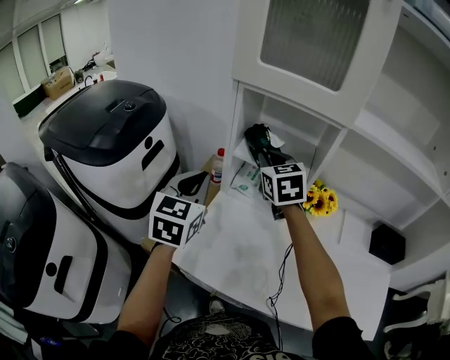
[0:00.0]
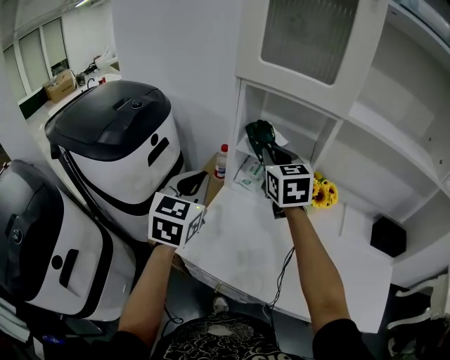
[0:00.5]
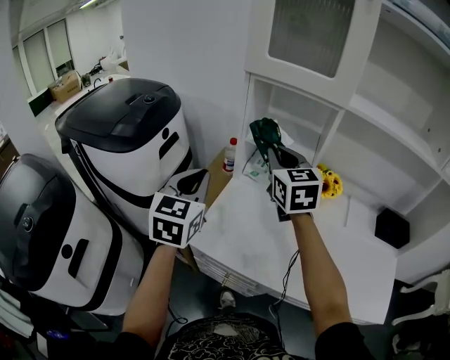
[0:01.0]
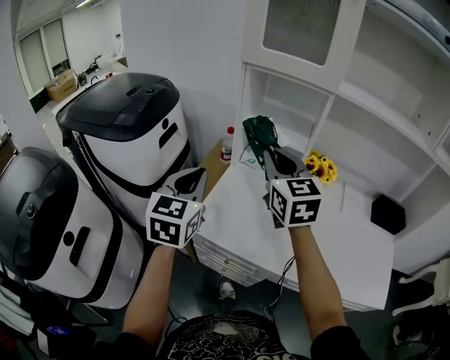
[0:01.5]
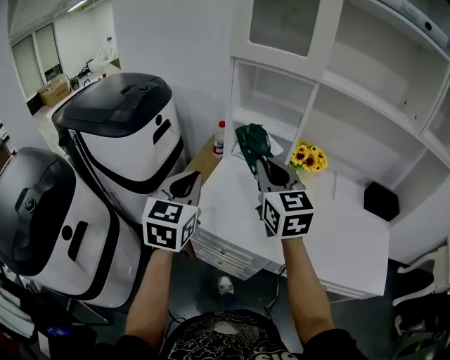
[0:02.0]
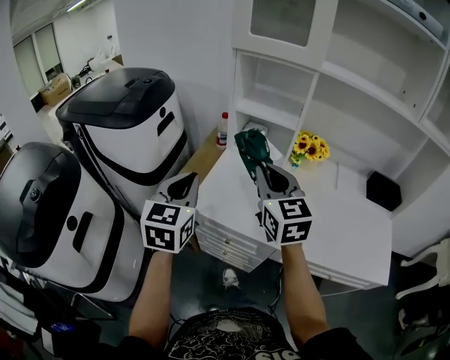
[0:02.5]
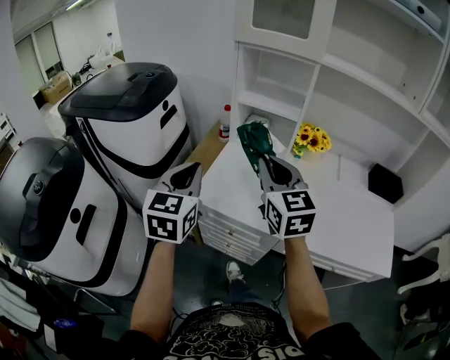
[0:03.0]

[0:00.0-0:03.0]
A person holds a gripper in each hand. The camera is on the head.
0.0 to 1.5 s: Both grippers travel together backward, approximately 15 cm.
1.5 to 3.0 s: Both grippers move backward, about 10 cm.

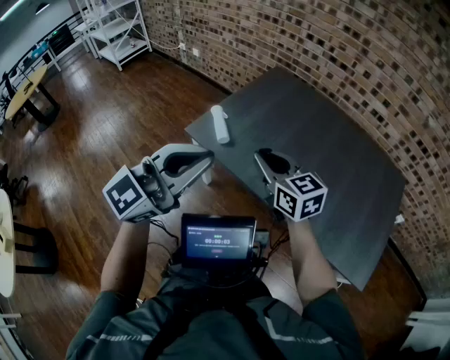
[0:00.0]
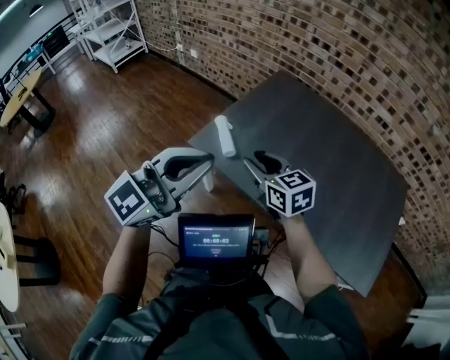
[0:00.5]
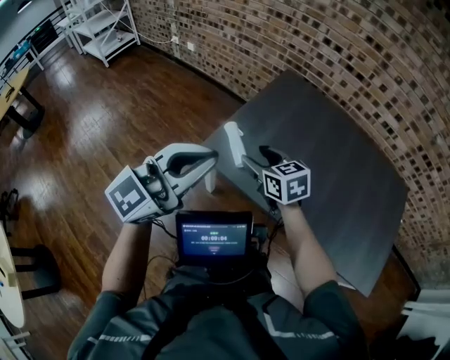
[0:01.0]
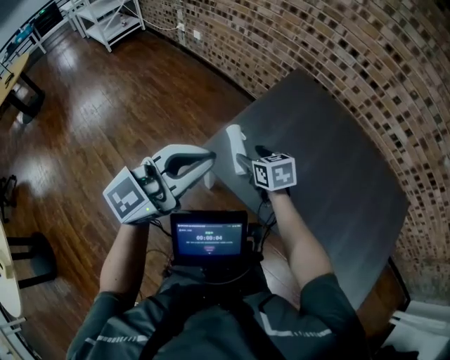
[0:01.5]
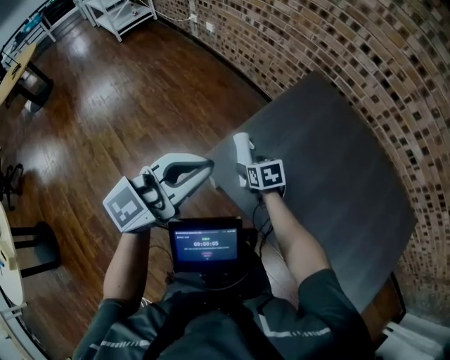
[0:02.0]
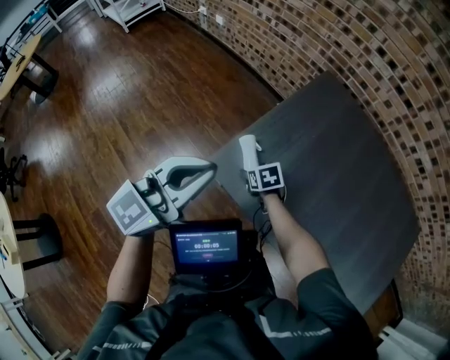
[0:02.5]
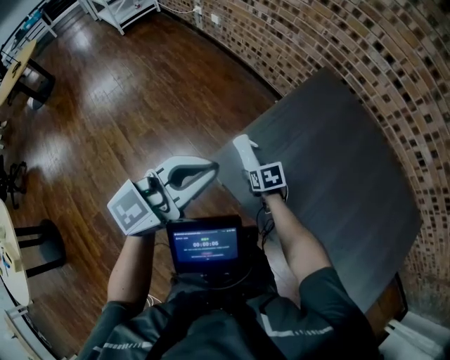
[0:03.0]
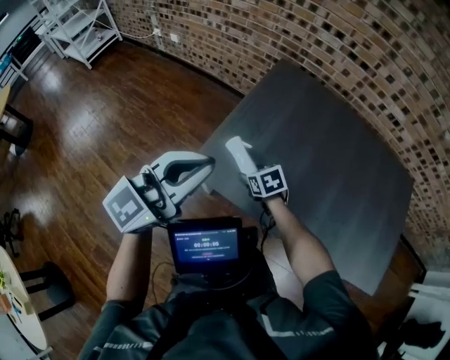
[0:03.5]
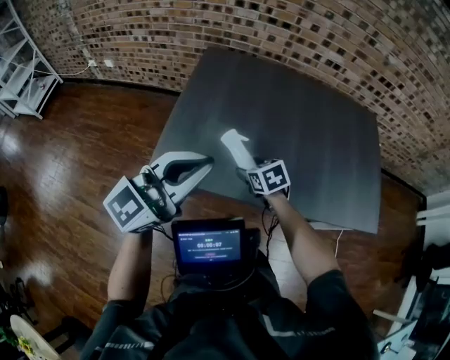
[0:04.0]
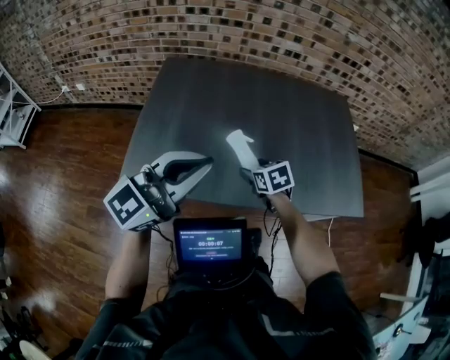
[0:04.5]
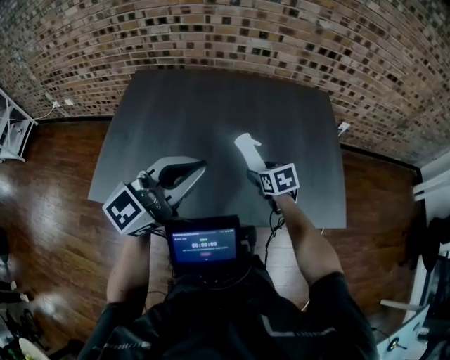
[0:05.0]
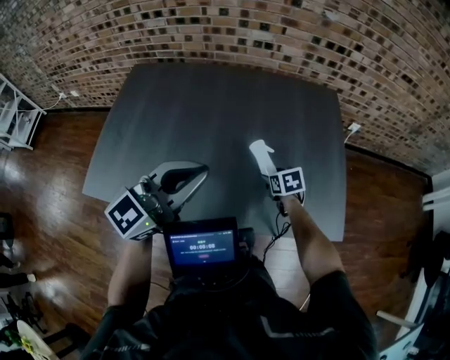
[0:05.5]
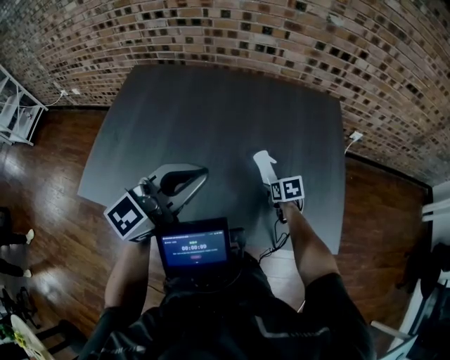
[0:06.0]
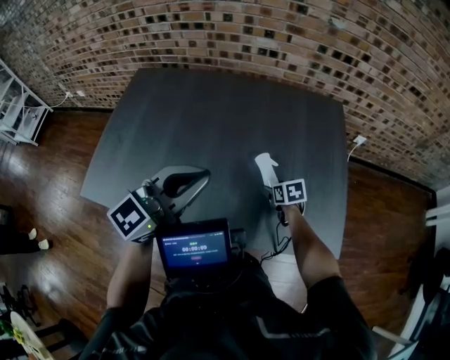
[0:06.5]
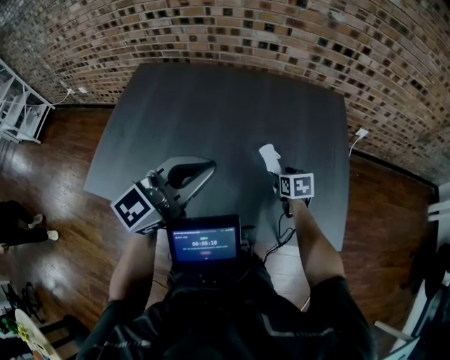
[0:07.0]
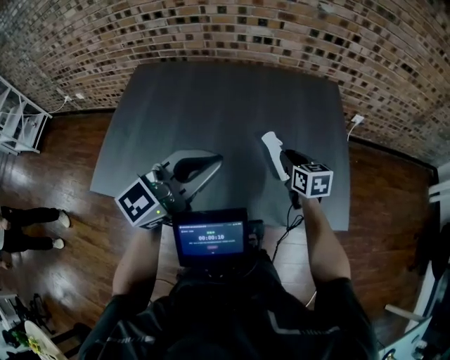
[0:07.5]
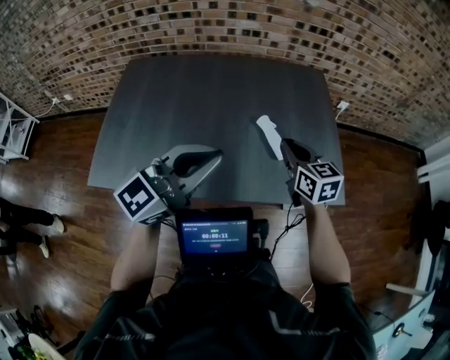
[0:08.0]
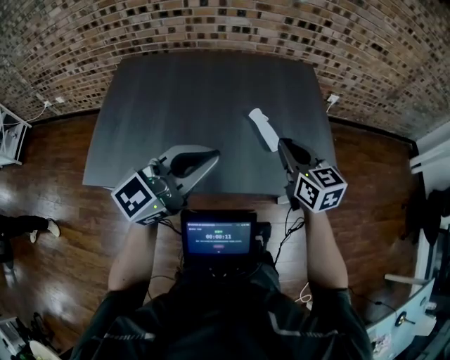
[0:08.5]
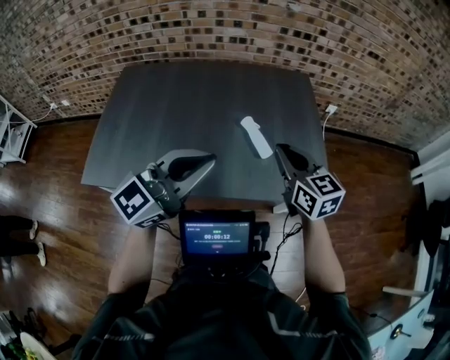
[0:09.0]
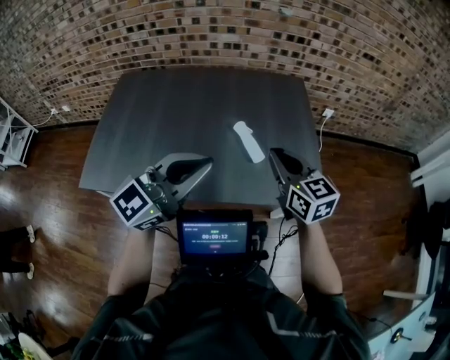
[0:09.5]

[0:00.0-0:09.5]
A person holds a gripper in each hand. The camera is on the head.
0.0 to 2.0 s: The left gripper heads forward and to the left, covering about 30 cm, while the right gripper travels downward, forward and to the left by approximately 40 cm, tips its fingers downward by some 40 degrees, and opens its fingers.
2.0 to 4.0 s: The left gripper ends up some 15 cm from where it was, and changes its angle by roughly 30 degrees. The right gripper moves some 25 cm, and swivels roughly 20 degrees.
4.0 to 5.5 s: Both grippers move to the right, some 40 cm.
5.5 to 7.5 s: The right gripper shifts some 10 cm upward, rotates roughly 30 degrees, and closes.
7.5 to 9.5 s: The right gripper travels upward and backward by roughly 25 cm, and swivels some 20 degrees. Meanwhile the left gripper is displaced backward and to the right by roughly 10 cm.

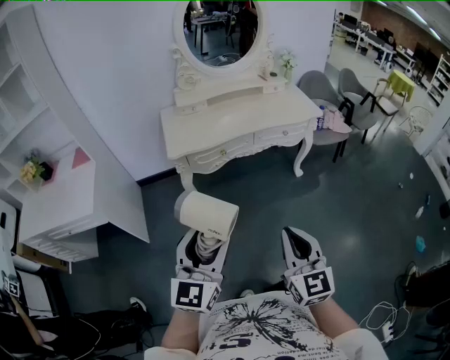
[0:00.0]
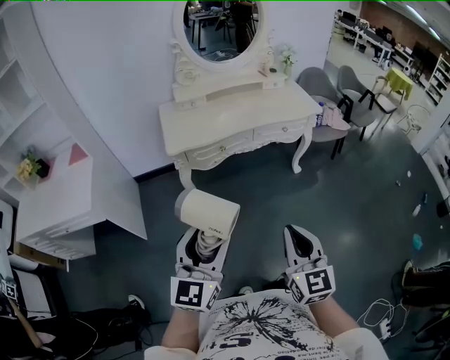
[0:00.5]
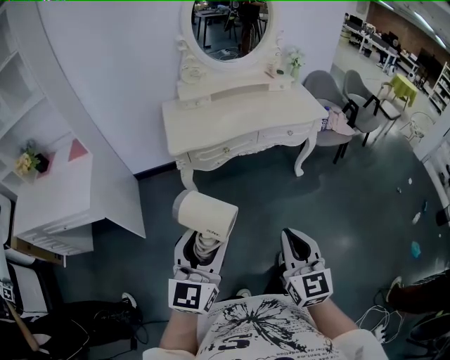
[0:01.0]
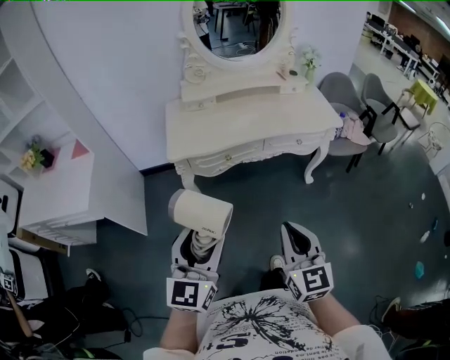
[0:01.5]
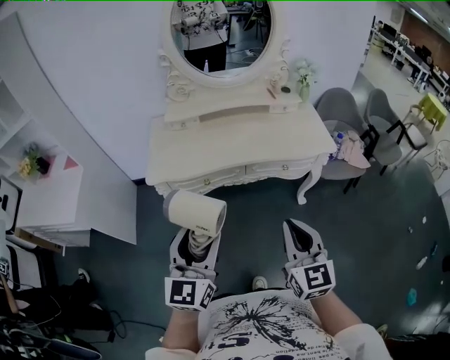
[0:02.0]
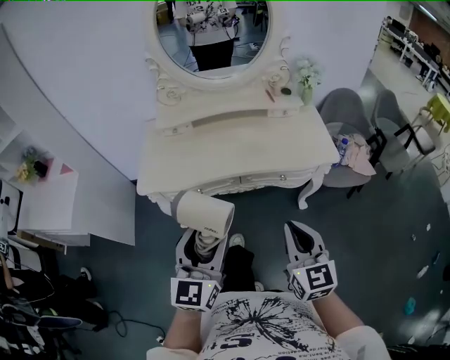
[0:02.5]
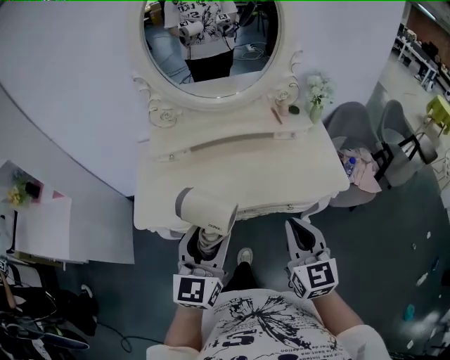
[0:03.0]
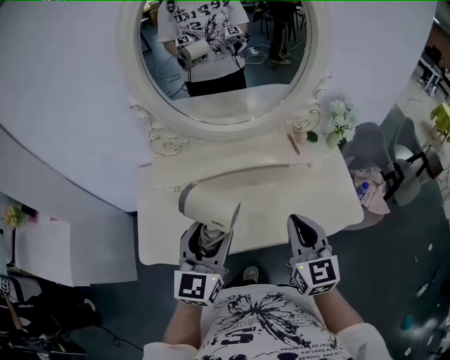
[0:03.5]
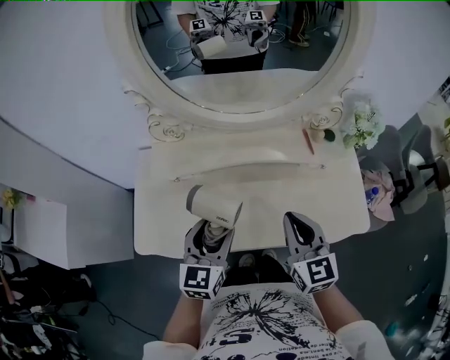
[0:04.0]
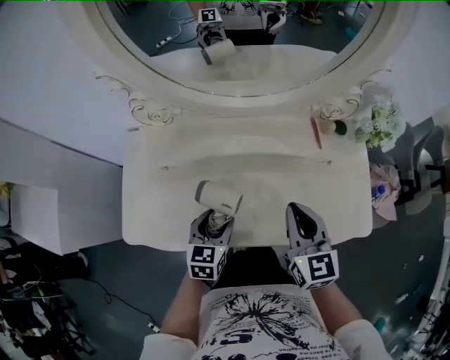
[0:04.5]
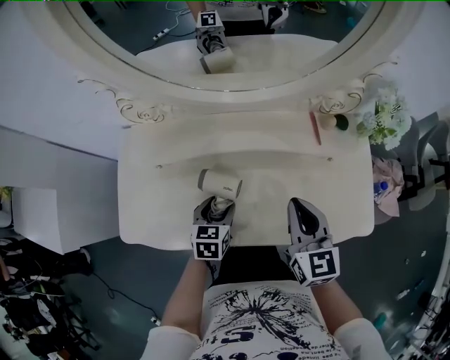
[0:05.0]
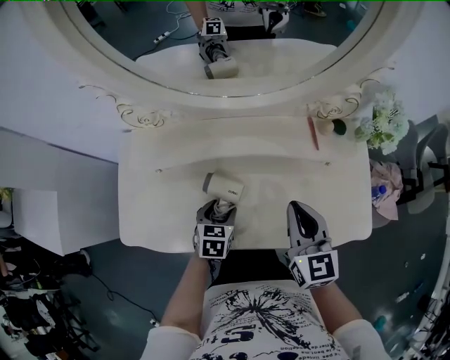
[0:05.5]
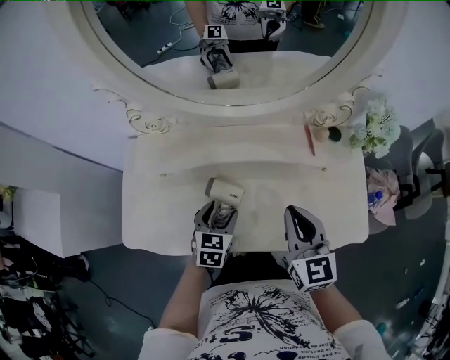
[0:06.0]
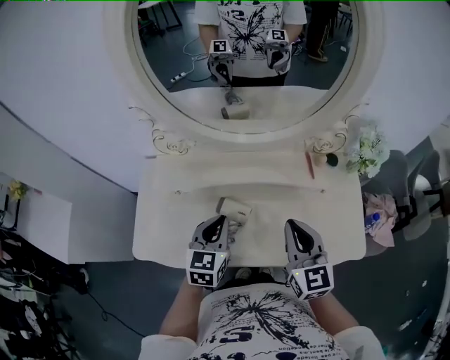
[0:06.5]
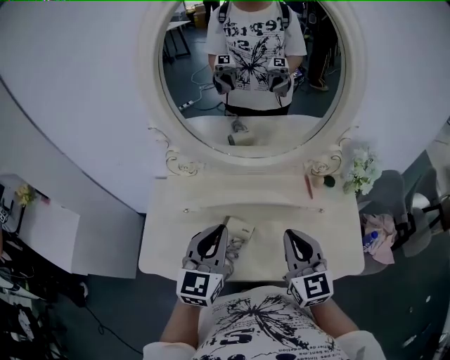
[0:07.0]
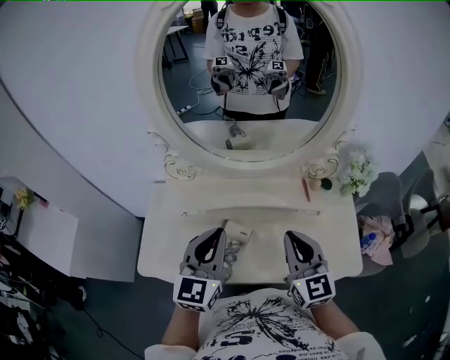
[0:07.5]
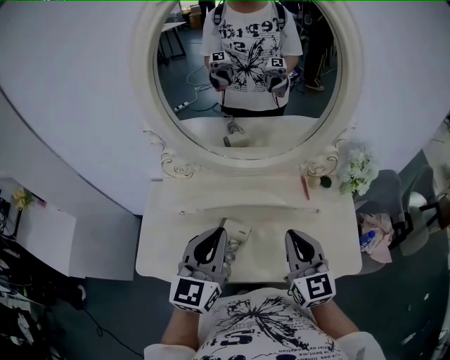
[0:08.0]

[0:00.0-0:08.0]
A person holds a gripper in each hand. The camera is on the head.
0.0 to 2.0 s: The two grippers go approximately 30 cm forward and to the right.
2.0 to 4.0 s: The pair of grippers is taken forward, about 50 cm.
4.0 to 6.0 s: The right gripper goes some 5 cm forward; the left gripper is displaced downward and forward by approximately 15 cm, and rotates approximately 20 degrees.
6.0 to 8.0 s: The right gripper is displaced upward by approximately 10 cm, while the left gripper shifts approximately 30 cm upward, points its fingers approximately 40 degrees further upward, and closes up.

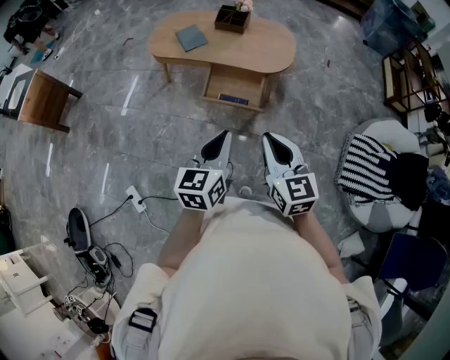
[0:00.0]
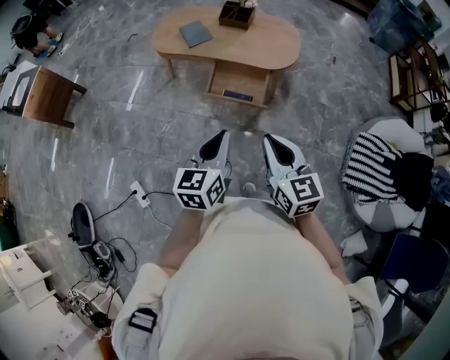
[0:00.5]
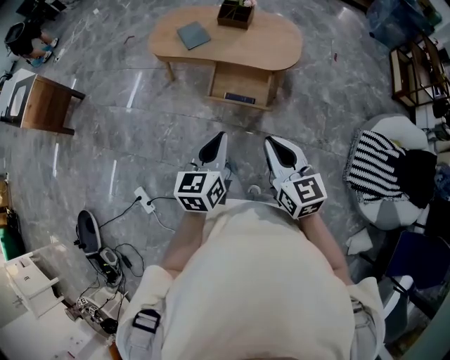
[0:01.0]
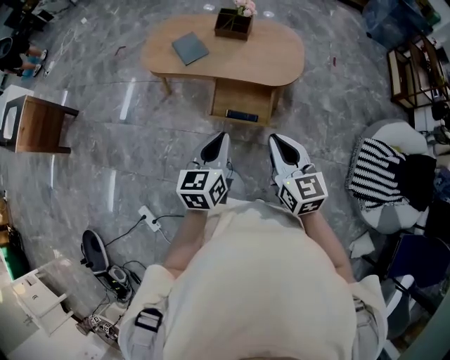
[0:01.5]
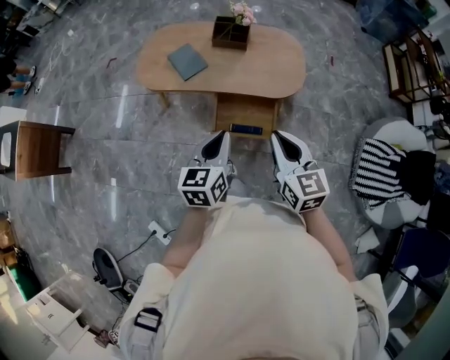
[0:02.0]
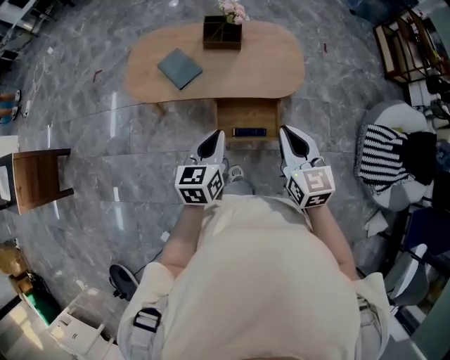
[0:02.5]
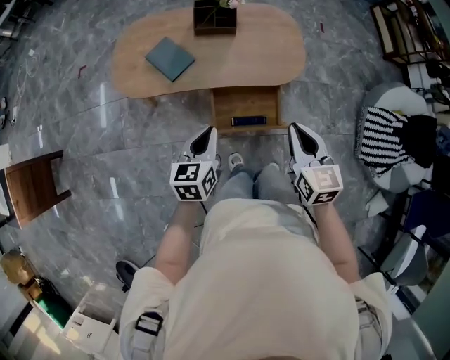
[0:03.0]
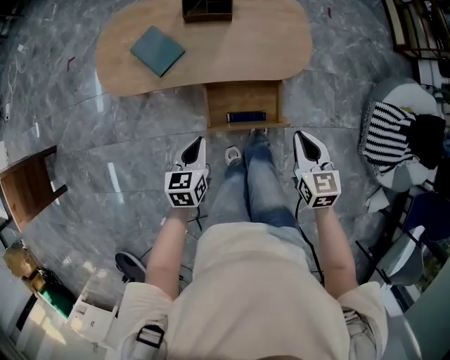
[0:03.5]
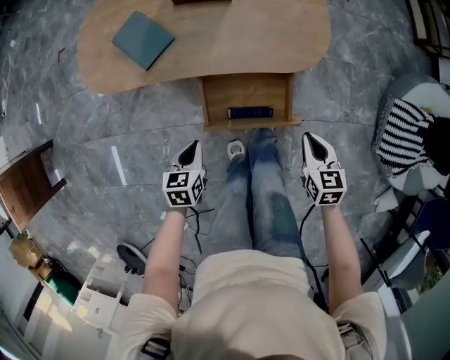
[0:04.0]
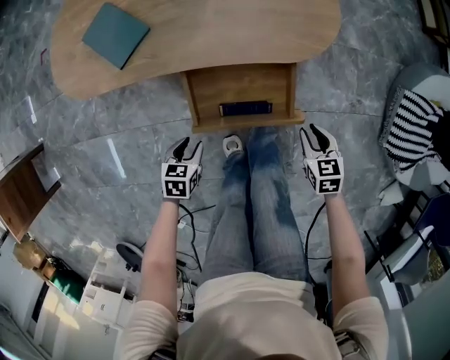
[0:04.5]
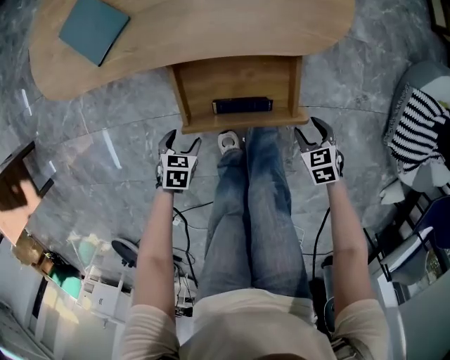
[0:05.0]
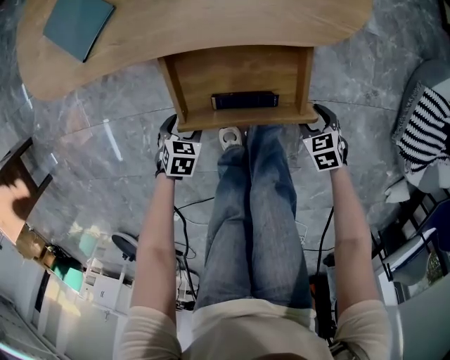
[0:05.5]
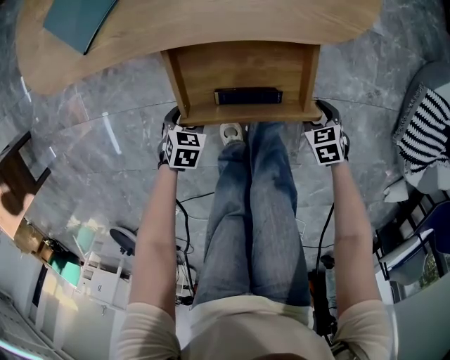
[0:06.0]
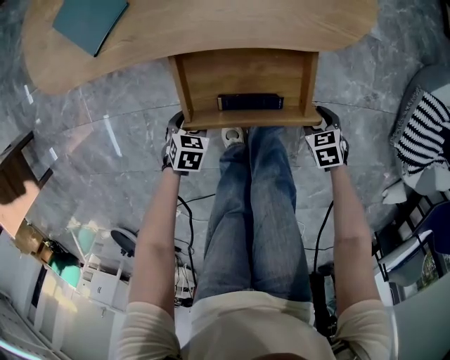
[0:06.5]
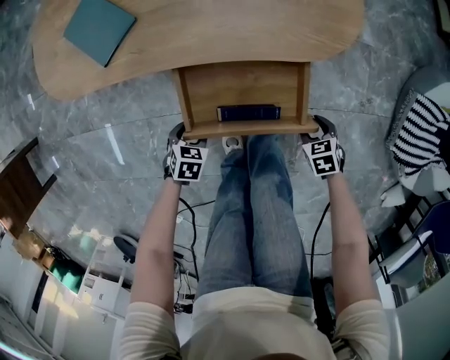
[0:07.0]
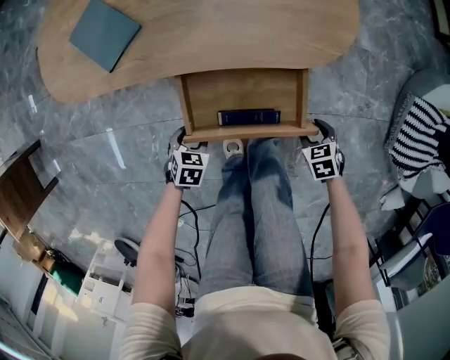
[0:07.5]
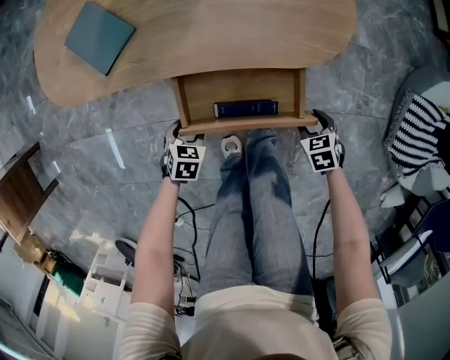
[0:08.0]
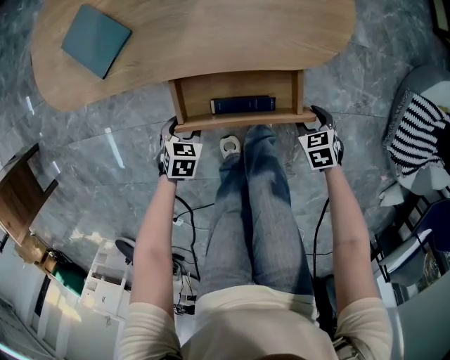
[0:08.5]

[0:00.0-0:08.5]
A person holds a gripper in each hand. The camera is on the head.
0.0 to 2.0 s: Both grippers travel together forward, some 25 cm.
2.0 to 4.0 s: Both grippers travel together downward, roughly 35 cm. The left gripper angles its fingers downward, by some 30 degrees; the right gripper turns by approximately 30 degrees.
4.0 to 6.5 s: Both grippers travel together downward, approximately 30 cm. The left gripper turns by approximately 30 degrees, and opens its fingers. Meanwhile the right gripper rotates about 30 degrees, and opens.
6.5 to 8.5 s: The left gripper shifts by about 5 cm; the right gripper moves approximately 5 cm.
